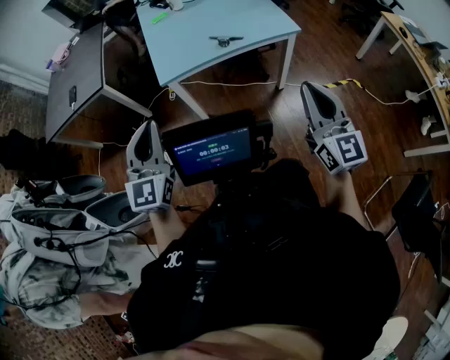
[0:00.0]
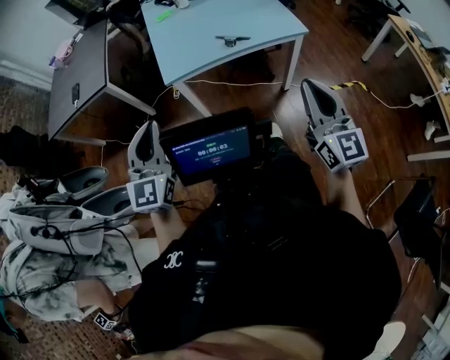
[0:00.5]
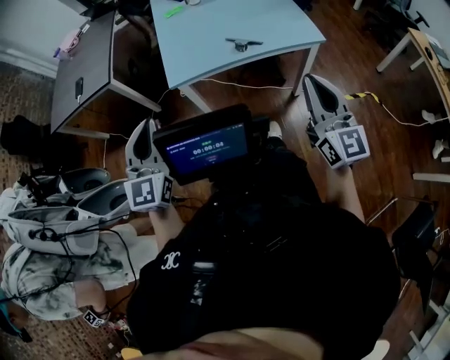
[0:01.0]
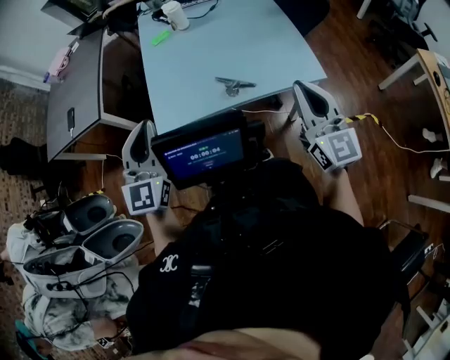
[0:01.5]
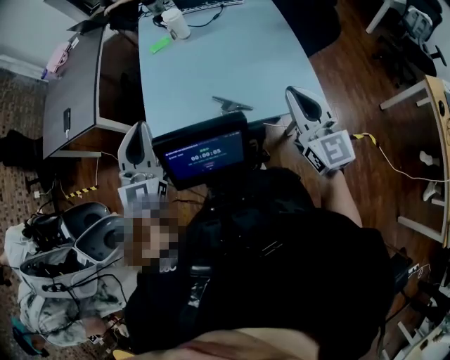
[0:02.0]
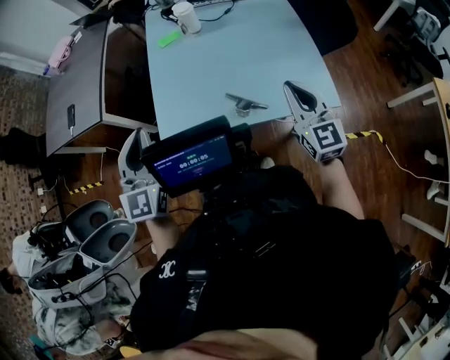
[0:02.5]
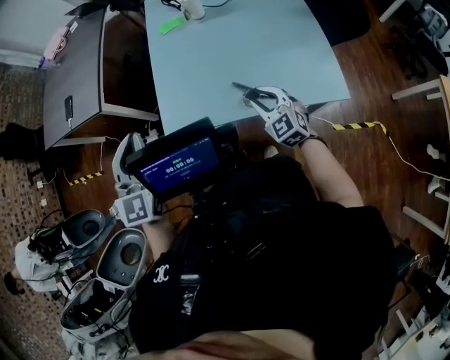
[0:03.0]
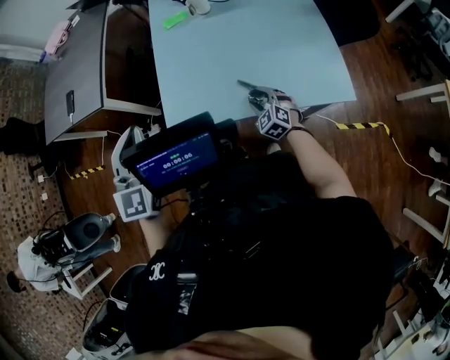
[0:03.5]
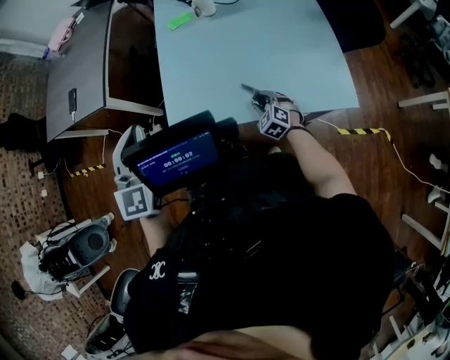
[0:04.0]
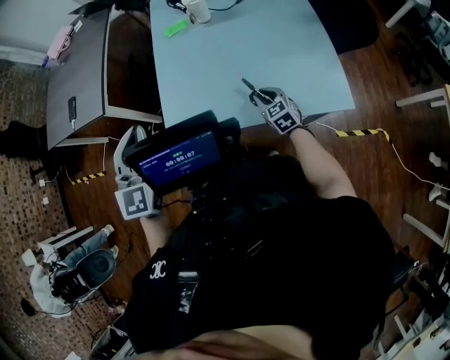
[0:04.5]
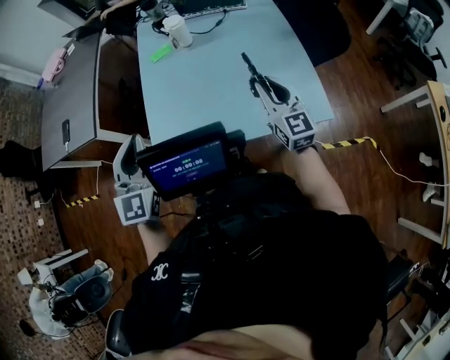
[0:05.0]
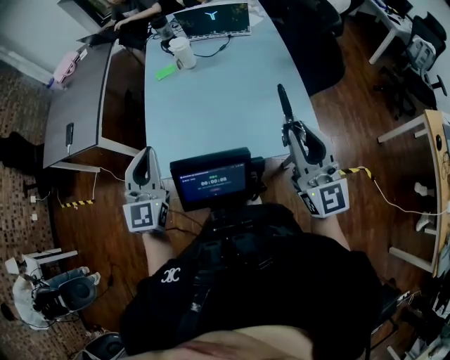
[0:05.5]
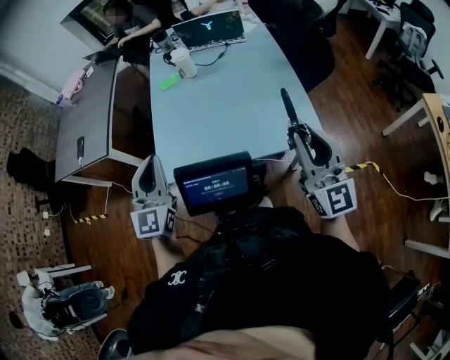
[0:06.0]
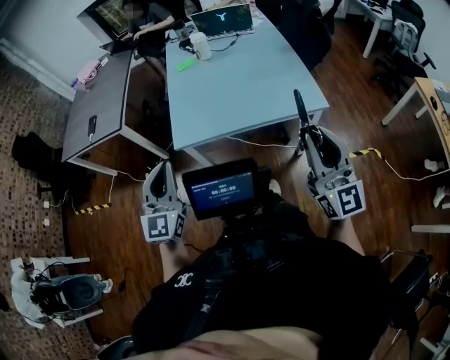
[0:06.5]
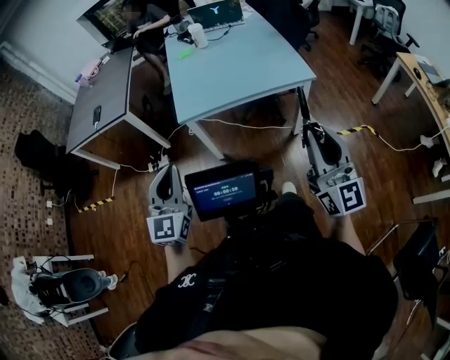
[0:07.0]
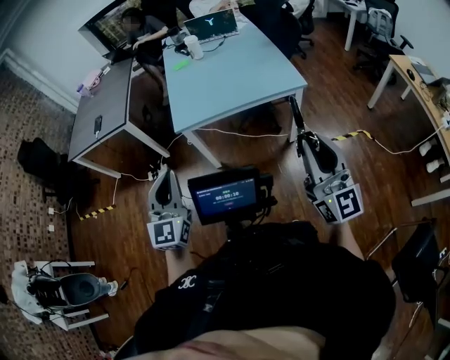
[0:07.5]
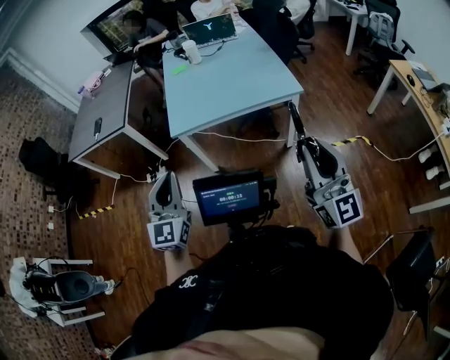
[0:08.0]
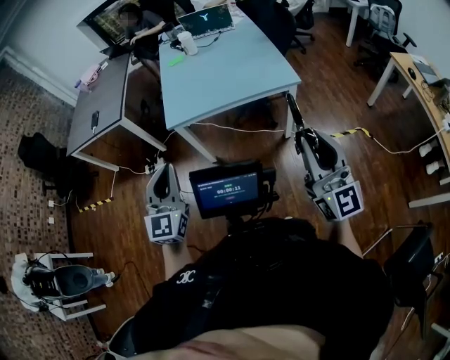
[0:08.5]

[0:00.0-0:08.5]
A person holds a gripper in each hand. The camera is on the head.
0:00.0 to 0:02.0: Both grippers travel together forward, approximately 40 cm.
0:02.0 to 0:04.0: The left gripper moves to the left and forward, about 10 cm, while the right gripper goes approximately 40 cm downward and to the left, tilts its fingers approximately 50 degrees downward, and opens up.
0:04.0 to 0:06.5: The right gripper travels upward and backward by approximately 50 cm, and angles its fingers upward, by approximately 70 degrees, while the left gripper moves backward, some 25 cm.
0:06.5 to 0:08.5: The two grippers go approximately 20 cm backward.

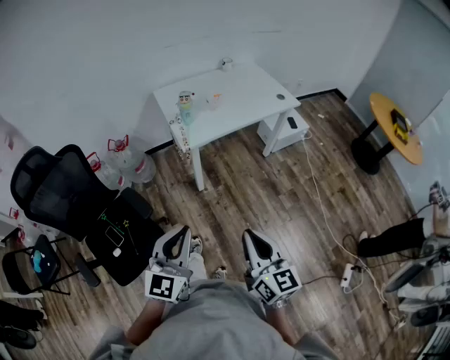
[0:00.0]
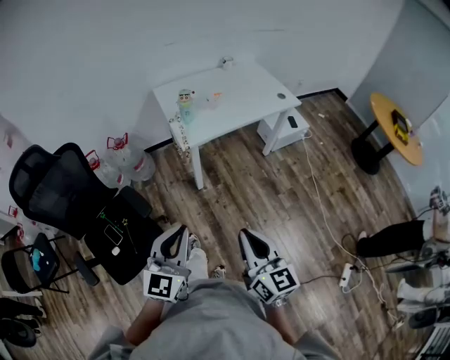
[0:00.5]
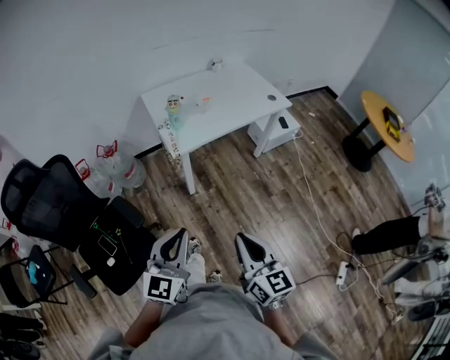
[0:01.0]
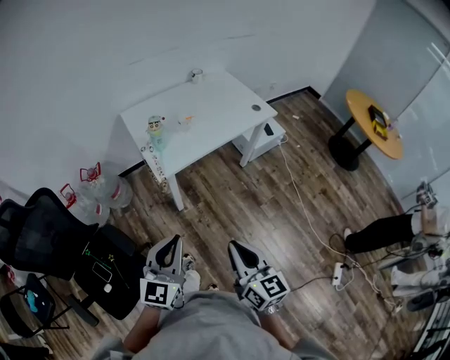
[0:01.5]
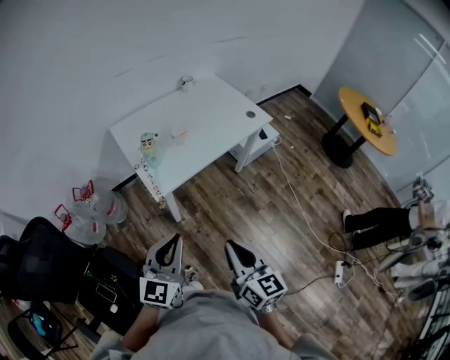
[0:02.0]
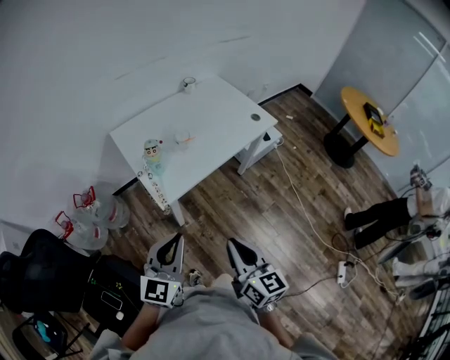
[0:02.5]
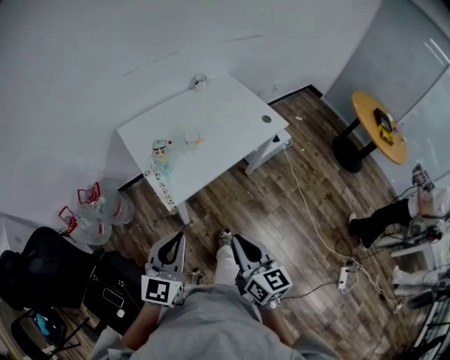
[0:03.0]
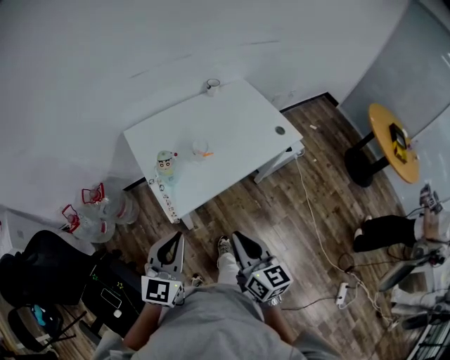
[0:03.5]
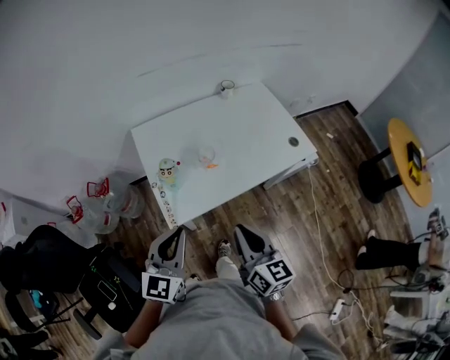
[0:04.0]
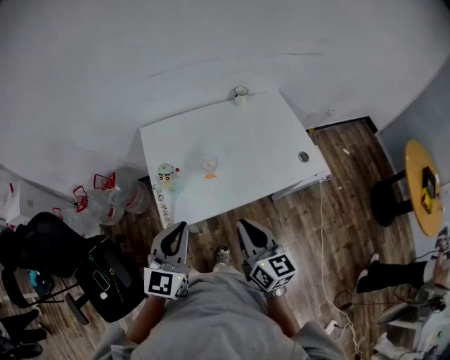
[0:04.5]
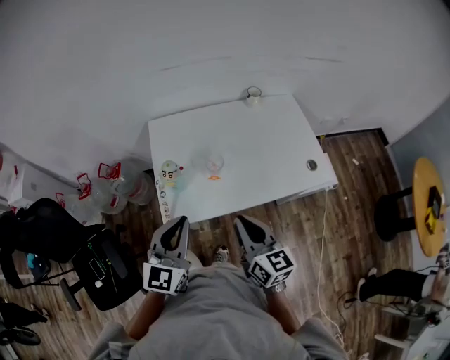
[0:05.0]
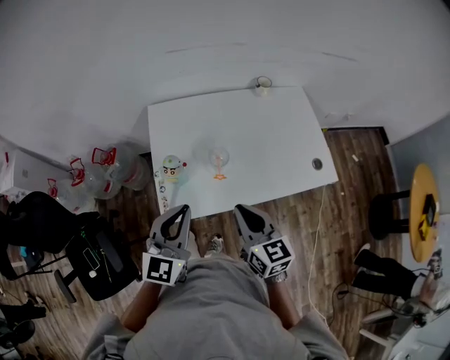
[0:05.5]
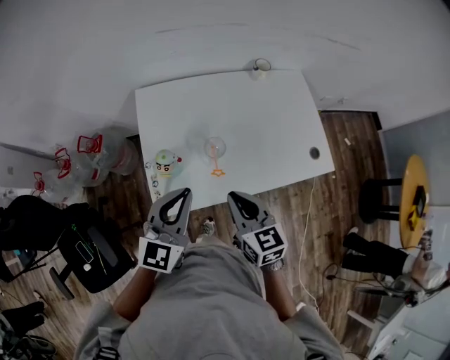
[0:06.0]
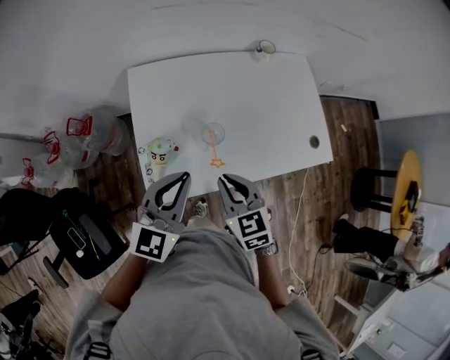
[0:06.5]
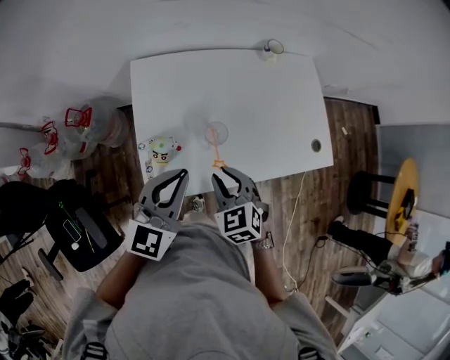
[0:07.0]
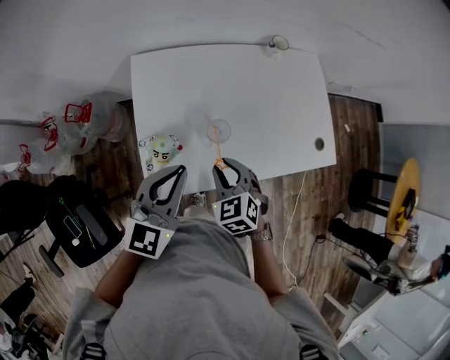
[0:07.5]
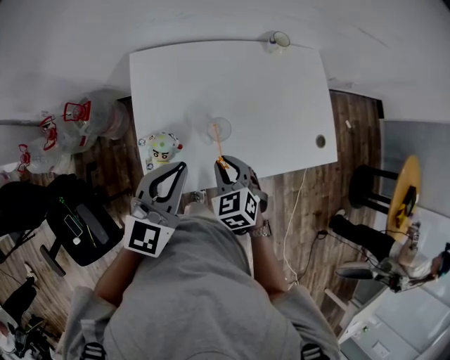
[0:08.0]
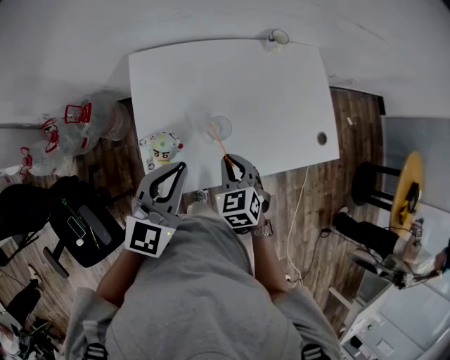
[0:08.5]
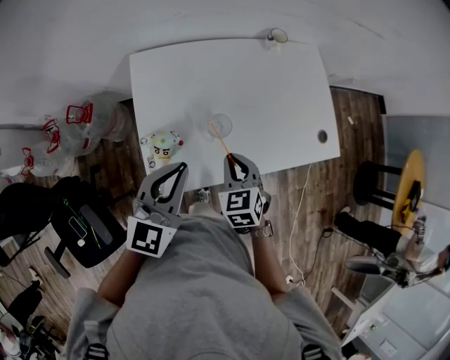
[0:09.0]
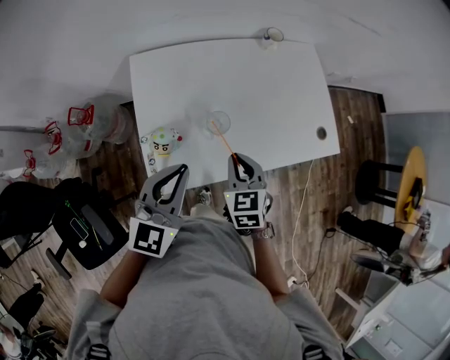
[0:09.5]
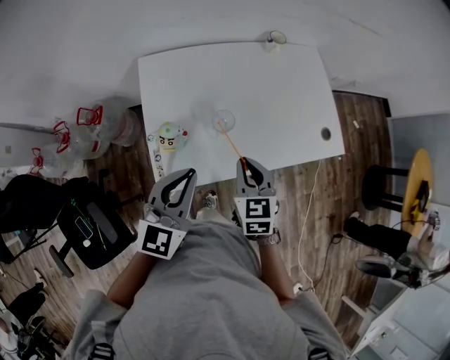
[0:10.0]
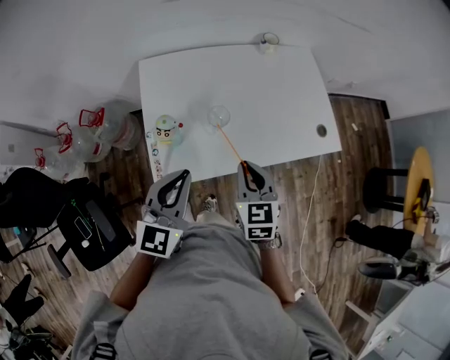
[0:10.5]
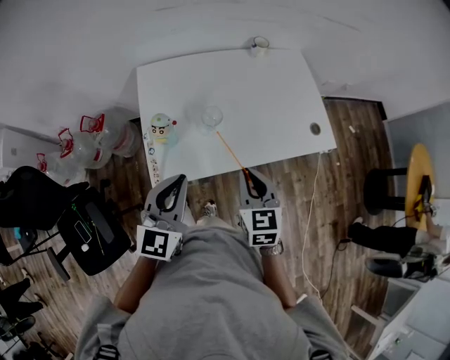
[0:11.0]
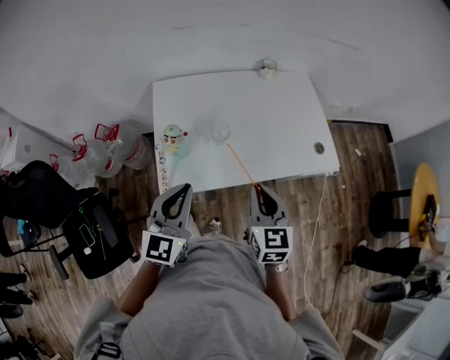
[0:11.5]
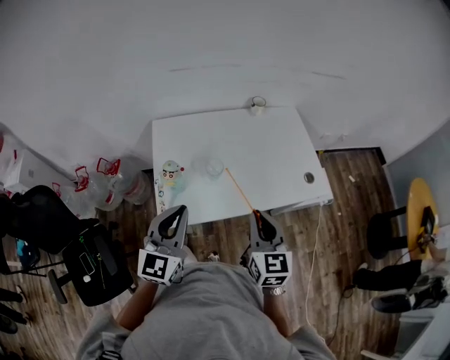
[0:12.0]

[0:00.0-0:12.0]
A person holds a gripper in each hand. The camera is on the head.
0:00.0 to 0:02.0: Both grippers travel together forward, about 20 cm.
0:02.0 to 0:04.0: The two grippers go some 25 cm forward.
0:04.0 to 0:06.0: The grippers both shift forward by some 15 cm. The right gripper rotates about 30 degrees.
0:06.0 to 0:08.0: The left gripper moves forward, some 5 cm; the right gripper moves downward and forward, about 15 cm, and rotates approximately 40 degrees.
0:08.0 to 0:10.0: The right gripper travels upward by some 5 cm, and rotates roughly 30 degrees, while the left gripper travels backward by some 5 cm.
0:10.0 to 0:12.0: The right gripper travels upward, backward and to the right by about 15 cm, and rotates roughly 20 degrees. Meanwhile the left gripper is displaced backward and upward by approximately 10 cm.

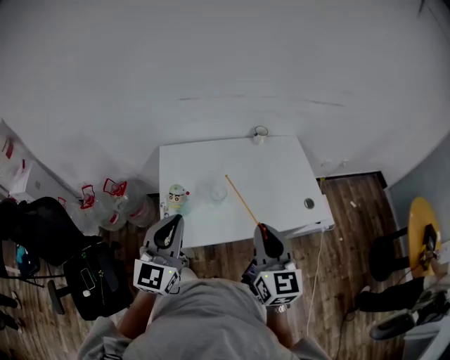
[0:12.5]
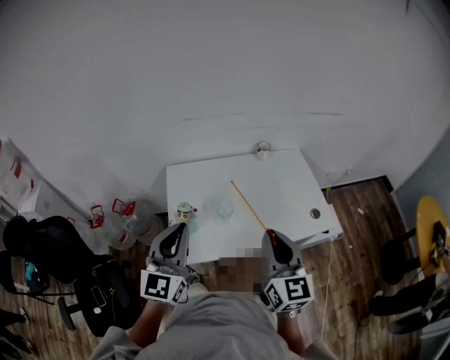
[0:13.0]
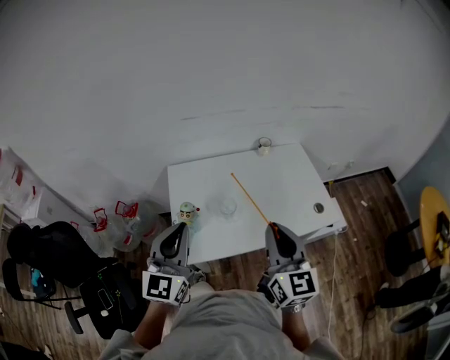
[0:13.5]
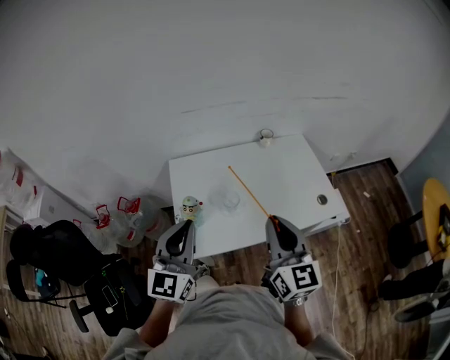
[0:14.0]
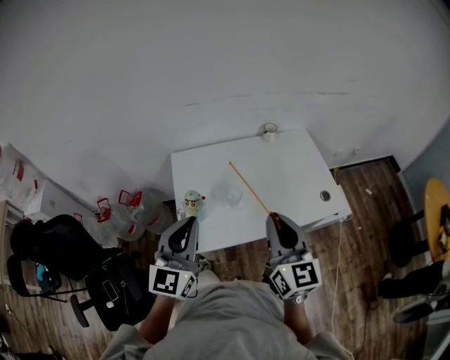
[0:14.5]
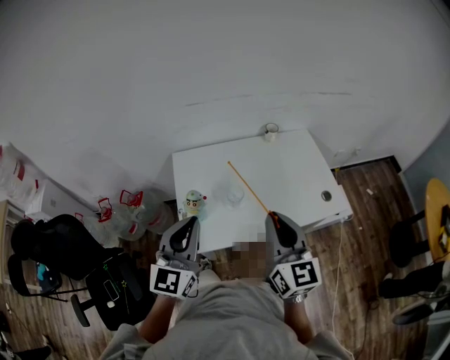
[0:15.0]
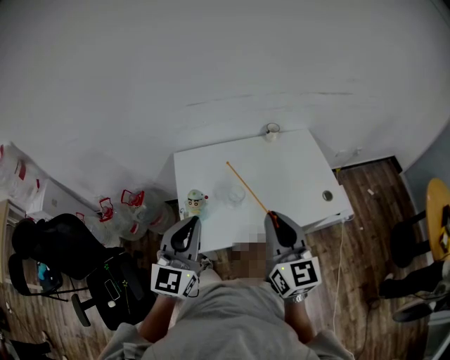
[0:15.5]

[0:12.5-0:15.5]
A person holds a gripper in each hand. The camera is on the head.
0:12.5 to 0:15.5: The grippers stay close to where they were, moving slightly.

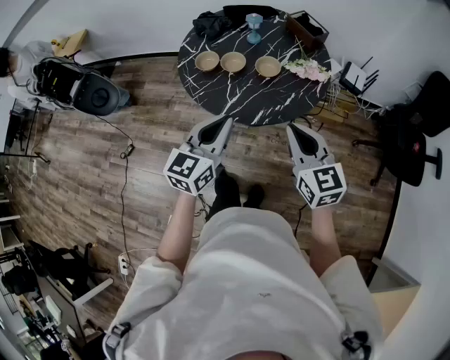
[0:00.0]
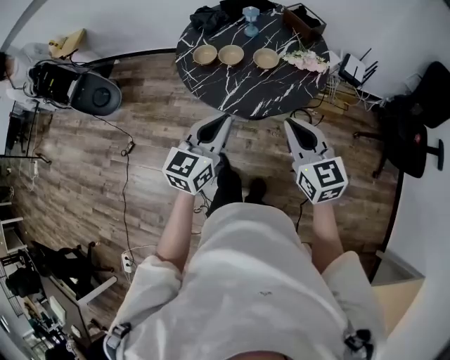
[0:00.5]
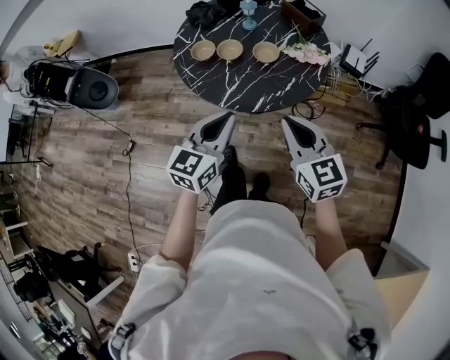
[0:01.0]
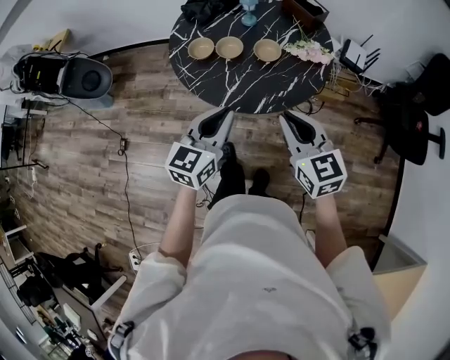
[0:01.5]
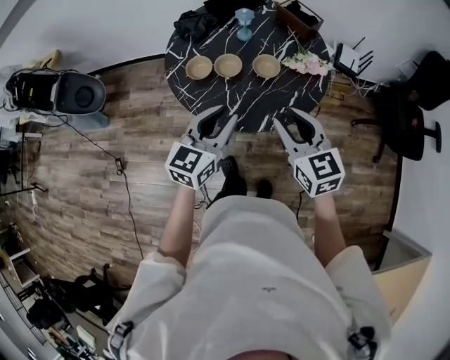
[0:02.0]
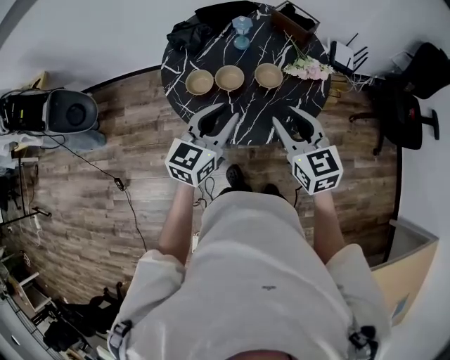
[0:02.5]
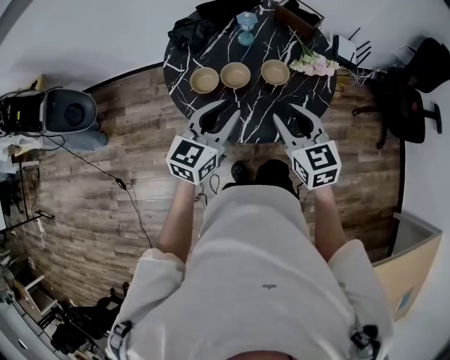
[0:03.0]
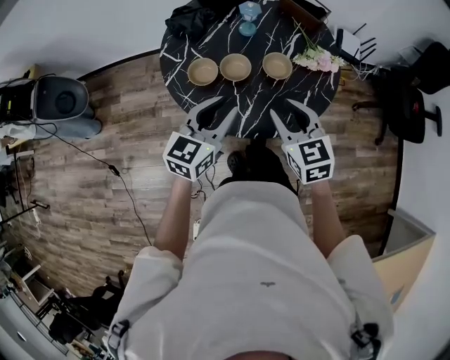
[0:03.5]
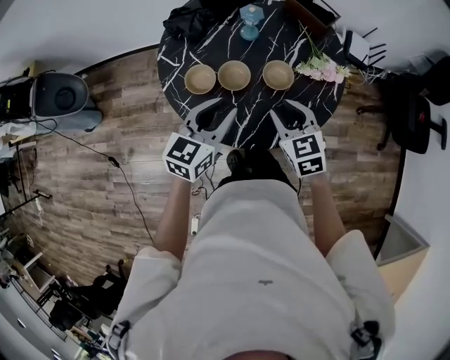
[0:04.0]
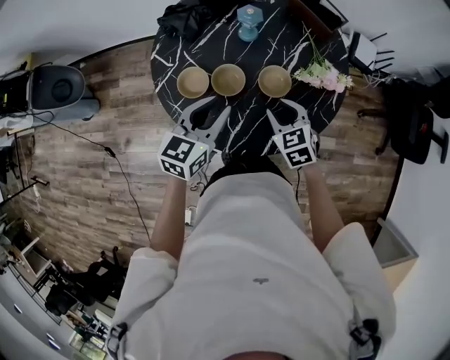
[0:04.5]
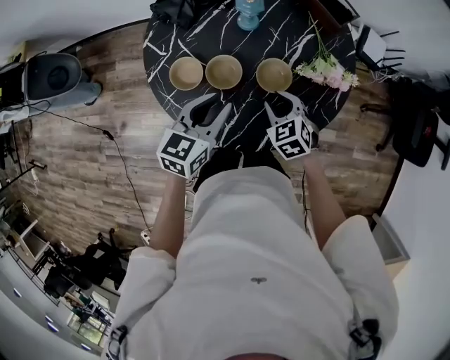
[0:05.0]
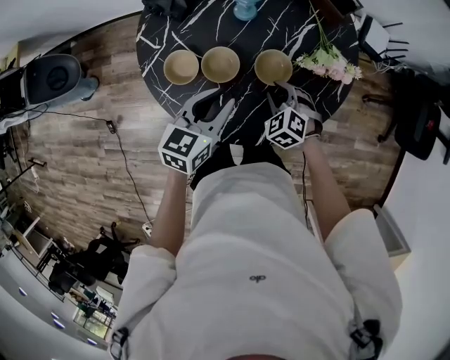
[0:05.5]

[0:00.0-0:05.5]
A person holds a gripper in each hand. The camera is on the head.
0:00.0 to 0:02.0: The right gripper is displaced forward and to the left by some 10 cm, and opens. The left gripper travels forward by some 10 cm, and opens.
0:02.0 to 0:03.5: The left gripper heads forward and to the left, covering roughly 10 cm, while the right gripper goes roughly 15 cm forward, to the left and downward.
0:03.5 to 0:05.5: The right gripper is displaced downward and forward by some 25 cm, and changes its angle by some 40 degrees, while the left gripper shifts about 15 cm forward, downward and to the right.
